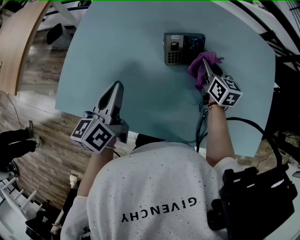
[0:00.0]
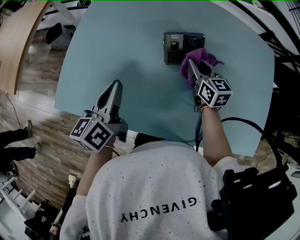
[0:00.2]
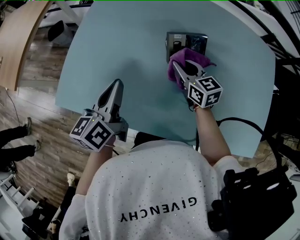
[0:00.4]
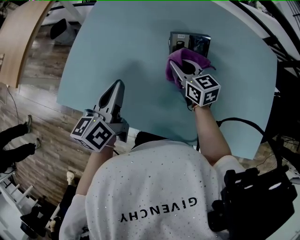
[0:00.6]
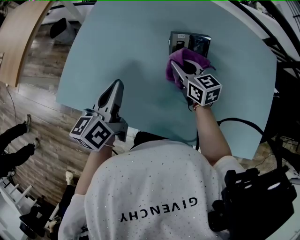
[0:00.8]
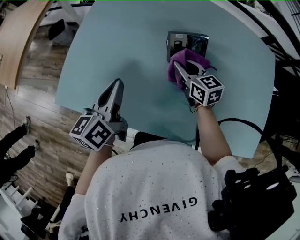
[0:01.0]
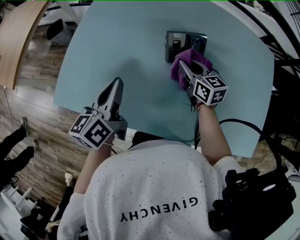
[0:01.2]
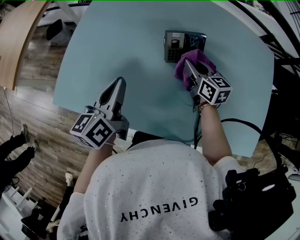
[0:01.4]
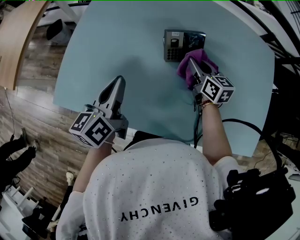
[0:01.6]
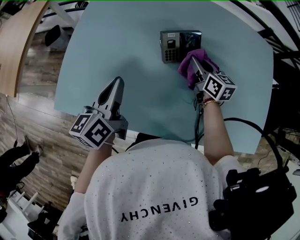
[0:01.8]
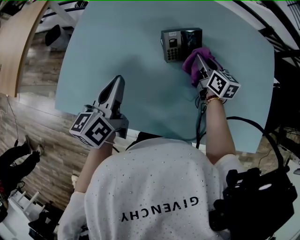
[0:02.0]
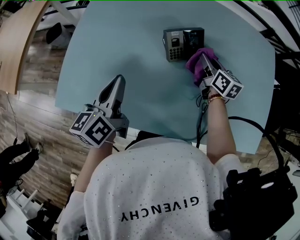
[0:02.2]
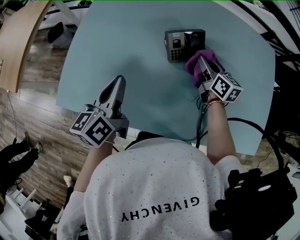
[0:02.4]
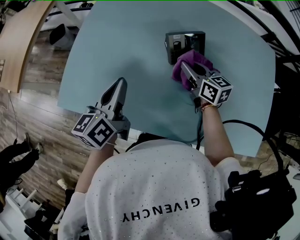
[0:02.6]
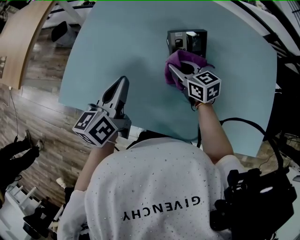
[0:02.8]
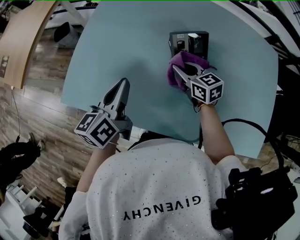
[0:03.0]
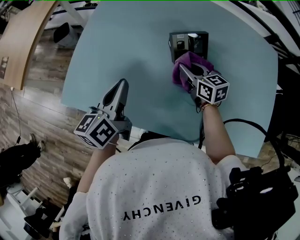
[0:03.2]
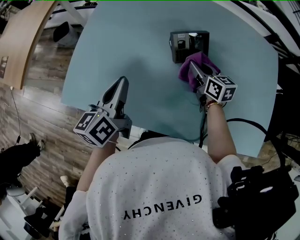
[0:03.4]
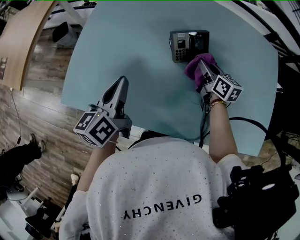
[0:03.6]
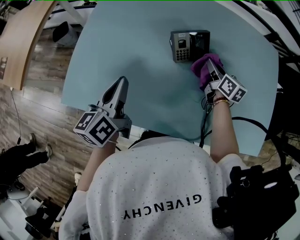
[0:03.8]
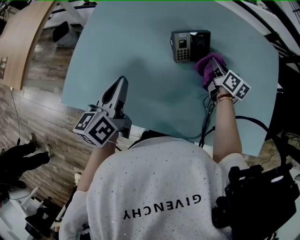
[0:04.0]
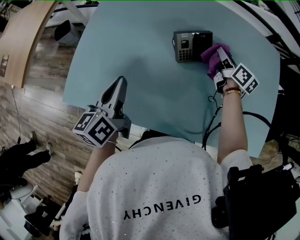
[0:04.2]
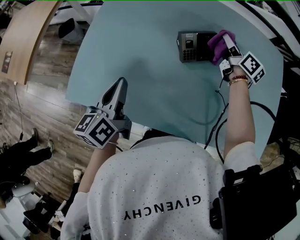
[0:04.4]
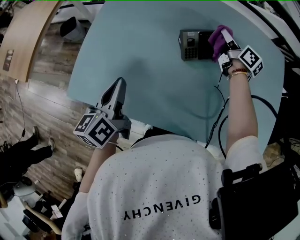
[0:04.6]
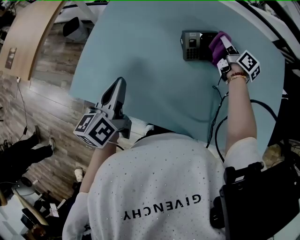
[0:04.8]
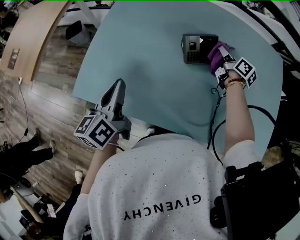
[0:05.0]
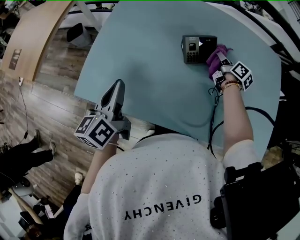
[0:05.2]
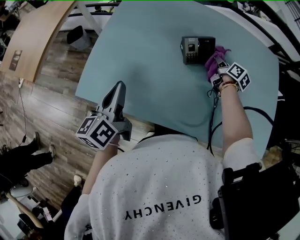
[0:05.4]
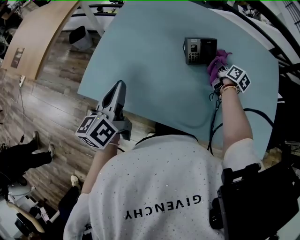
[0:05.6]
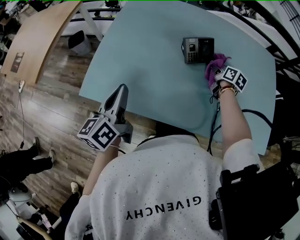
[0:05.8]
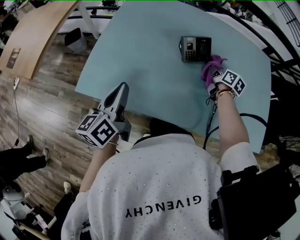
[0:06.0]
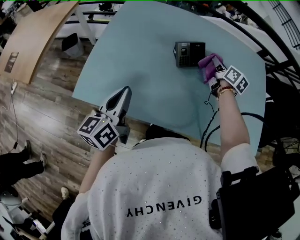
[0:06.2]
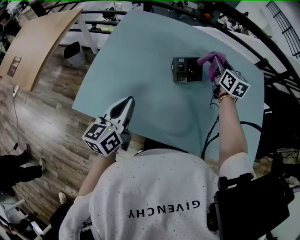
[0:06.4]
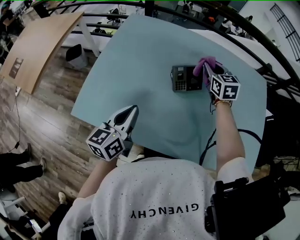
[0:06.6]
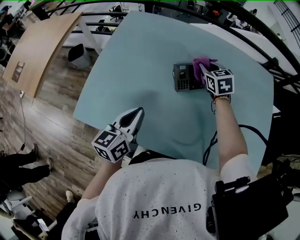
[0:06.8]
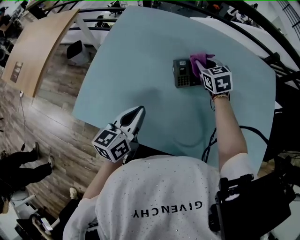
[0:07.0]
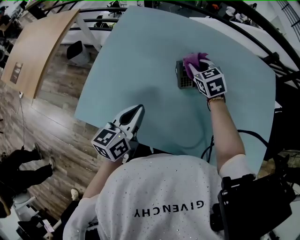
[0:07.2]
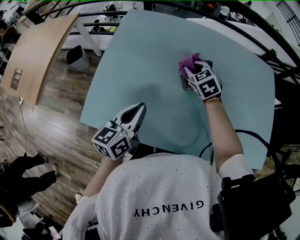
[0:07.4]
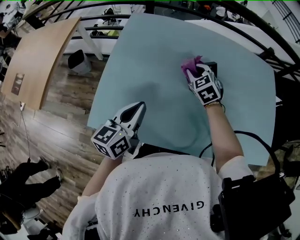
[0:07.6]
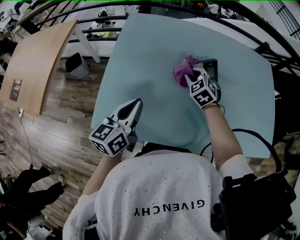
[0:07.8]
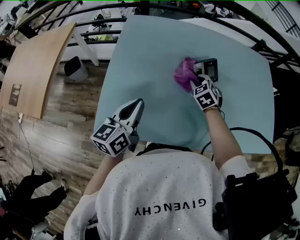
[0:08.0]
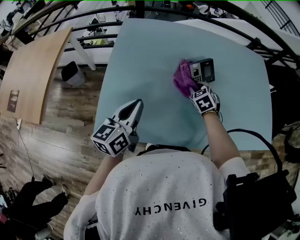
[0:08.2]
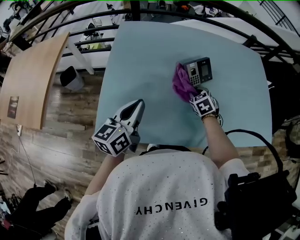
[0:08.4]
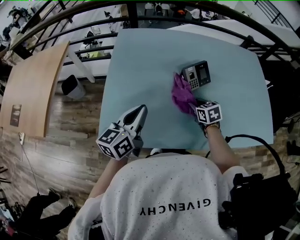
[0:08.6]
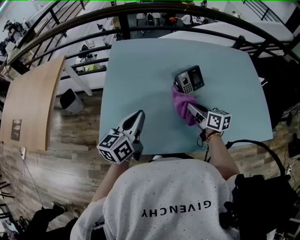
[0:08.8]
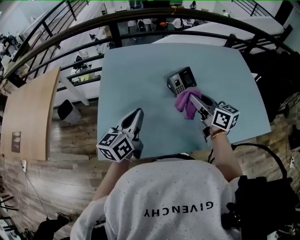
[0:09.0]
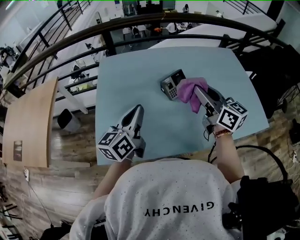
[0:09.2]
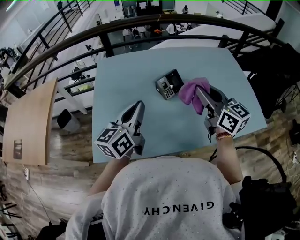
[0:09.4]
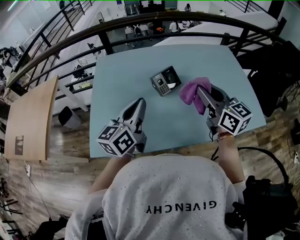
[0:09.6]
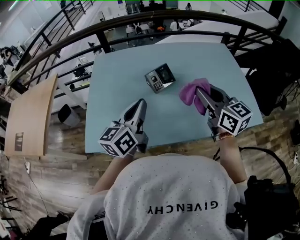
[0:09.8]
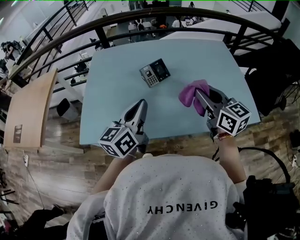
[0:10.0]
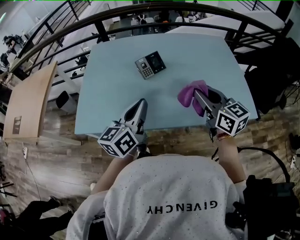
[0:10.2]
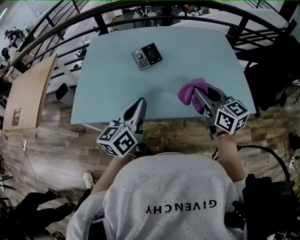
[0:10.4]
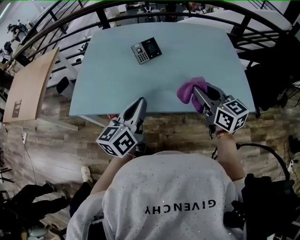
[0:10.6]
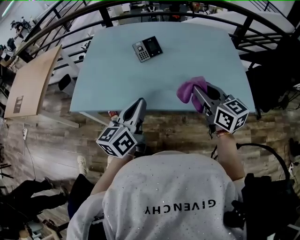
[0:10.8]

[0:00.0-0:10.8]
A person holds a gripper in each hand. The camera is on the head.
0:00.0 to 0:01.6: The right gripper travels to the left and back again, some 15 cm each way.
0:01.6 to 0:03.0: The right gripper goes roughly 10 cm to the left, and changes its angle by roughly 20 degrees.
0:03.0 to 0:04.6: The right gripper is displaced to the right, forward and upward by some 20 cm, and rotates about 50 degrees.
0:04.6 to 0:06.2: The left gripper moves backward, roughly 5 cm; the right gripper travels backward by approximately 10 cm.
0:06.2 to 0:07.8: The left gripper travels forward by some 5 cm. Meanwhile the right gripper travels to the left by about 20 cm, and rolls counterclockwise, seen from behind, by approximately 70 degrees.
0:07.8 to 0:09.2: The left gripper travels upward and to the right by about 10 cm, while the right gripper is displaced upward, backward and to the right by some 25 cm, and tilts its fingers some 40 degrees upward.
0:09.2 to 0:10.8: The grippers both shift to the right and backward by approximately 30 cm.

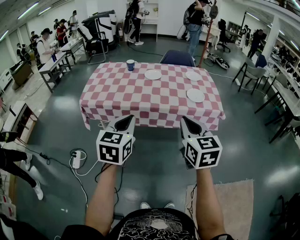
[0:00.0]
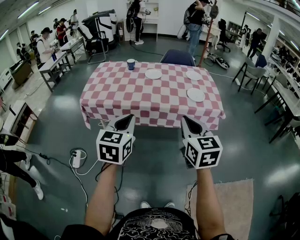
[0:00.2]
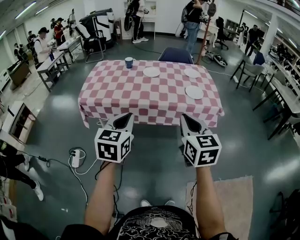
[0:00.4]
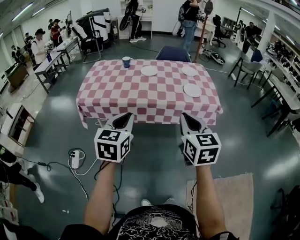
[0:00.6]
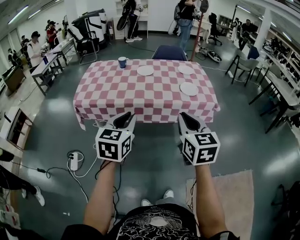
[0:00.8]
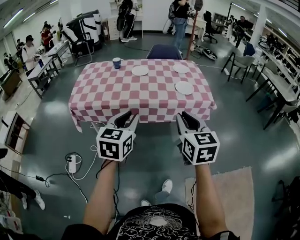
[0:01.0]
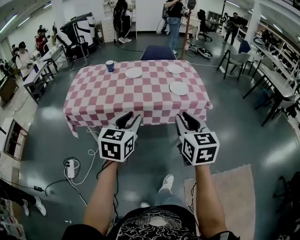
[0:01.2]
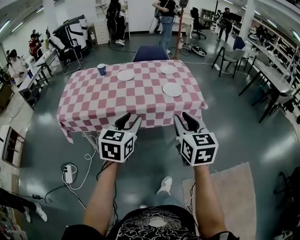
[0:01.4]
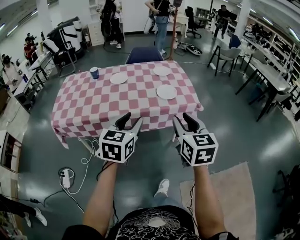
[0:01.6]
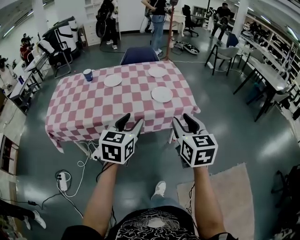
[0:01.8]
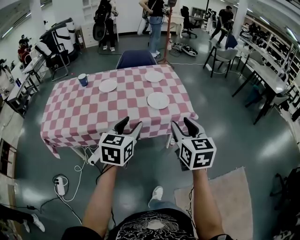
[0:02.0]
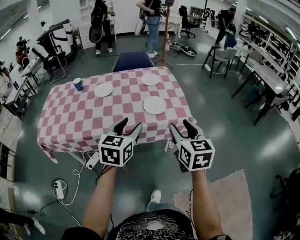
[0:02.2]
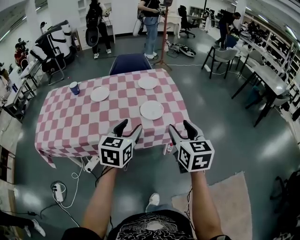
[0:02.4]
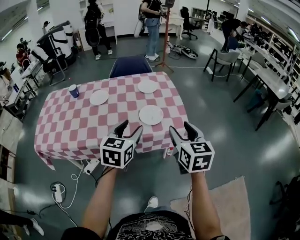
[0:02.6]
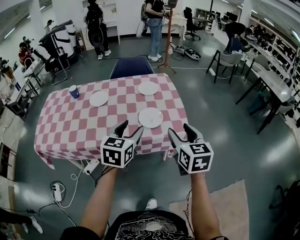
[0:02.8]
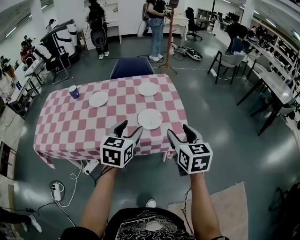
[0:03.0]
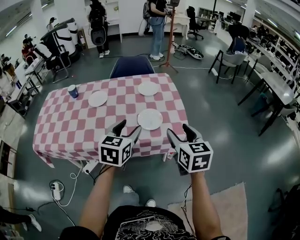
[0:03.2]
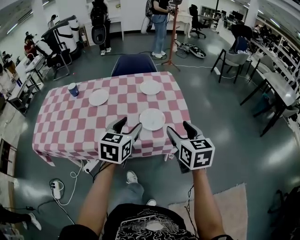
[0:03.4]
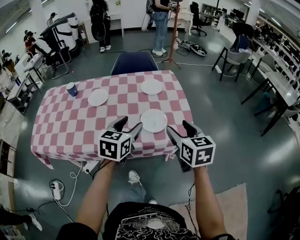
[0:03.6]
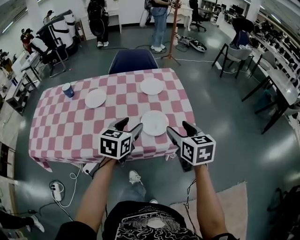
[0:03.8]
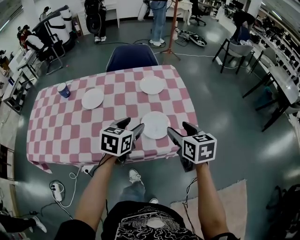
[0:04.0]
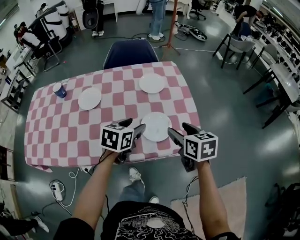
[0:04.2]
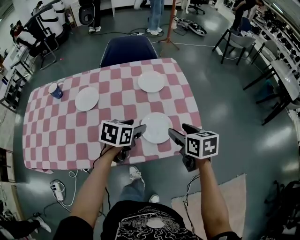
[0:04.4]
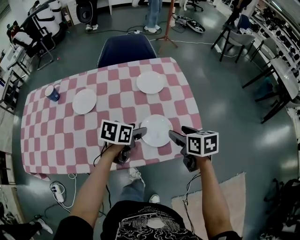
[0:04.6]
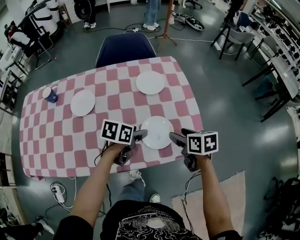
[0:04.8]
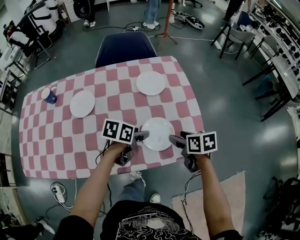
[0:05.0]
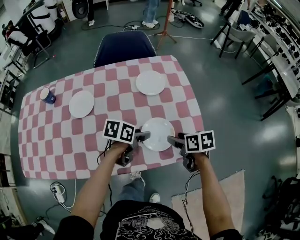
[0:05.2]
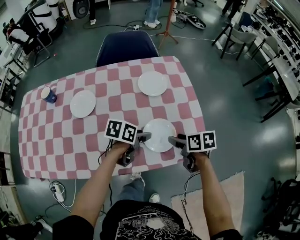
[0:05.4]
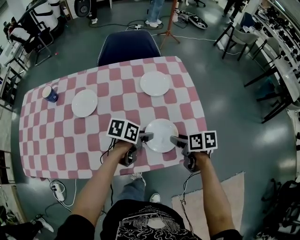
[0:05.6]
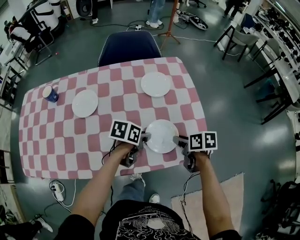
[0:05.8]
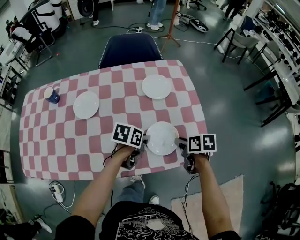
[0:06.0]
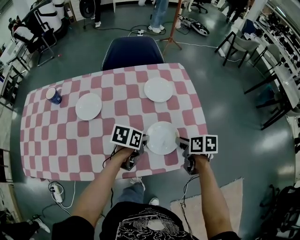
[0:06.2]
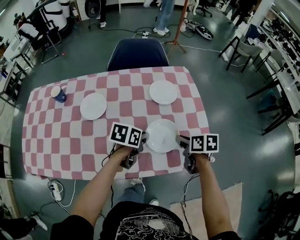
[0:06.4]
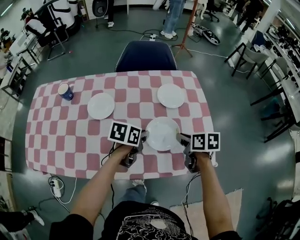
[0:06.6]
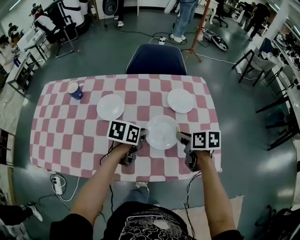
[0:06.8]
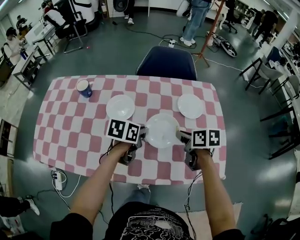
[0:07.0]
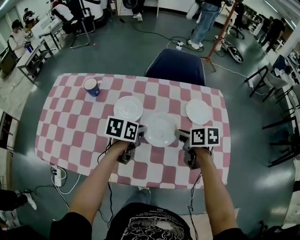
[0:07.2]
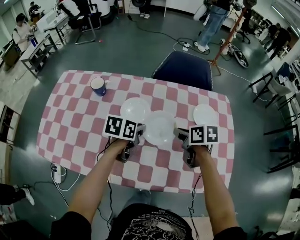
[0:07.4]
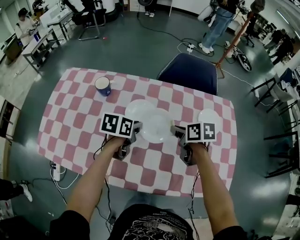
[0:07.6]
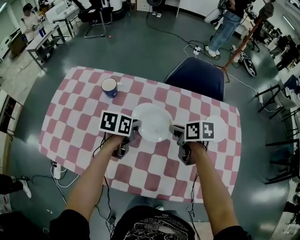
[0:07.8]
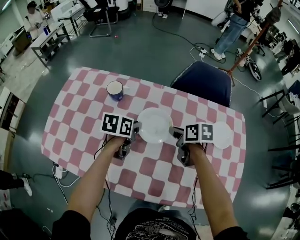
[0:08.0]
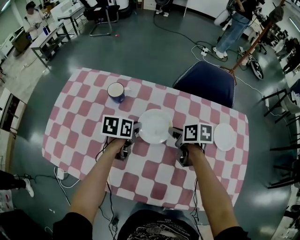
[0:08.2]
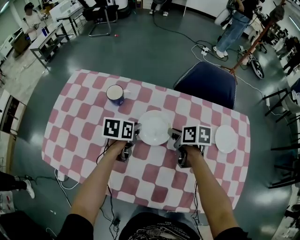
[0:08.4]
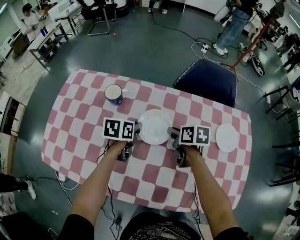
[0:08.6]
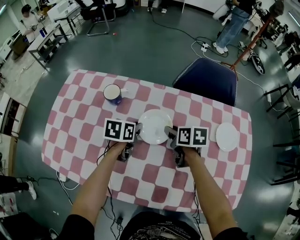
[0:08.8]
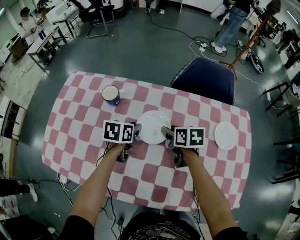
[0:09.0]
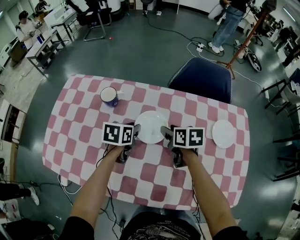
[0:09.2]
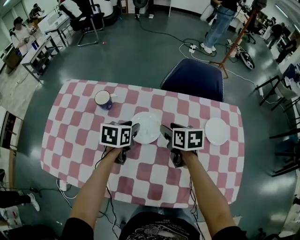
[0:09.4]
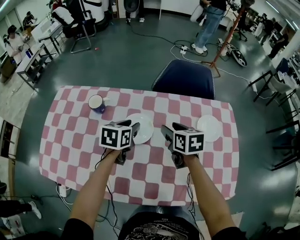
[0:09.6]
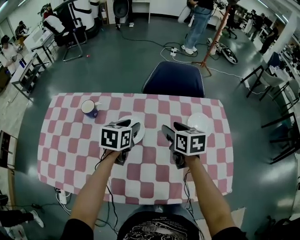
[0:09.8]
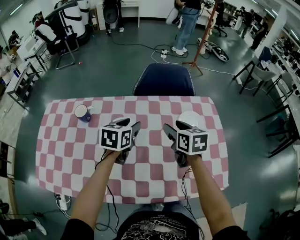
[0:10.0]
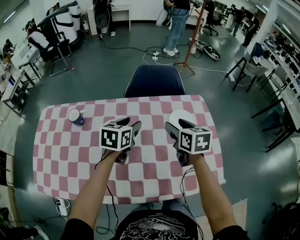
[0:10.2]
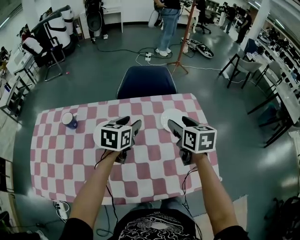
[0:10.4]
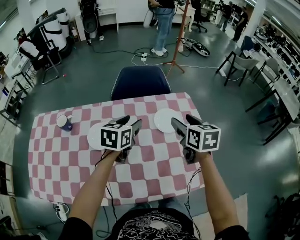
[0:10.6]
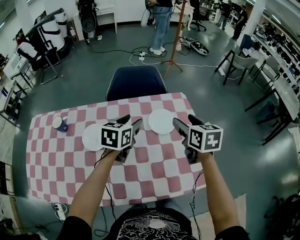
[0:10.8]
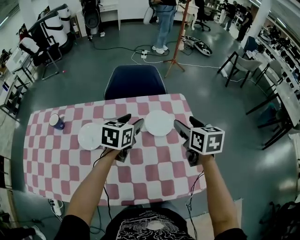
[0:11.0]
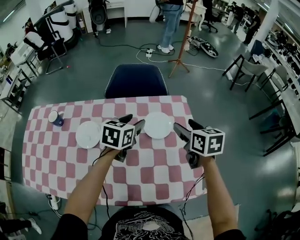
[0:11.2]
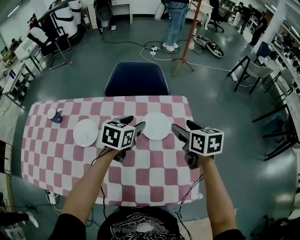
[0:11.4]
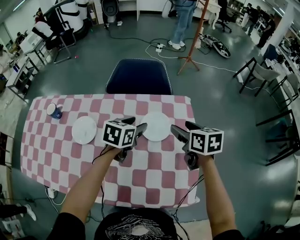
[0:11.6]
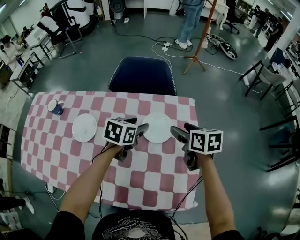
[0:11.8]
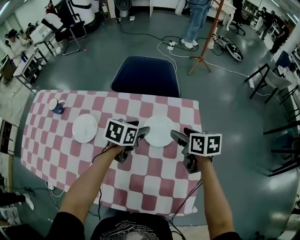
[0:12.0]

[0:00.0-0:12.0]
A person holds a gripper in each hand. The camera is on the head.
0:00.0 to 0:01.6: The two grippers go roughly 15 cm to the right and forward. The right gripper opens its fingers; the left gripper opens.
0:01.6 to 0:03.0: Both grippers move forward and to the right, some 25 cm. The right gripper opens up.
0:03.0 to 0:04.4: Both grippers travel together forward and downward, some 25 cm. The left gripper rotates about 30 degrees; the right gripper swivels about 30 degrees.
0:04.4 to 0:06.0: Both grippers move downward, some 10 cm. The left gripper turns by approximately 20 degrees, and closes its fingers; the right gripper changes its angle by some 20 degrees, and closes.
0:06.0 to 0:07.6: The right gripper shifts by some 35 cm, and turns by approximately 20 degrees. Meanwhile the left gripper shifts by approximately 30 cm, and swivels about 30 degrees.
0:07.6 to 0:09.0: Both grippers travel together forward, to the left and downward, some 10 cm. The right gripper opens up.
0:09.0 to 0:10.4: The two grippers go about 30 cm to the right and upward. The left gripper turns by some 30 degrees, and opens its fingers. Meanwhile the right gripper swivels about 30 degrees.
0:10.4 to 0:12.0: The grippers both shift to the right, downward and forward by approximately 20 cm. The right gripper rotates approximately 30 degrees.

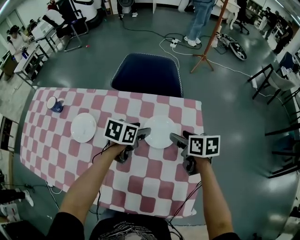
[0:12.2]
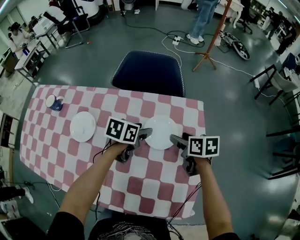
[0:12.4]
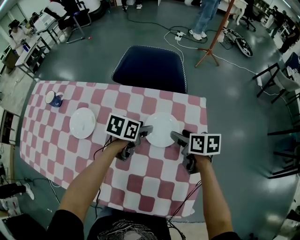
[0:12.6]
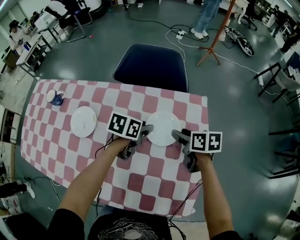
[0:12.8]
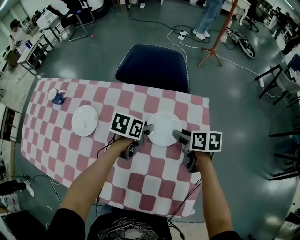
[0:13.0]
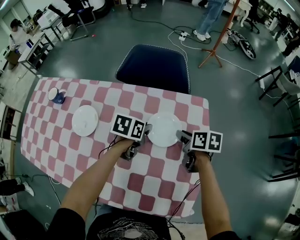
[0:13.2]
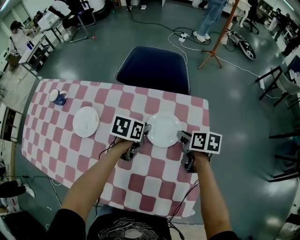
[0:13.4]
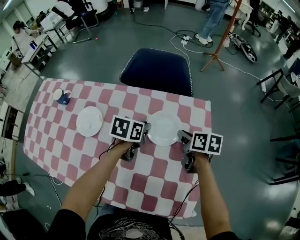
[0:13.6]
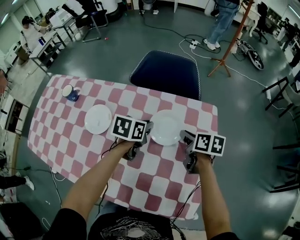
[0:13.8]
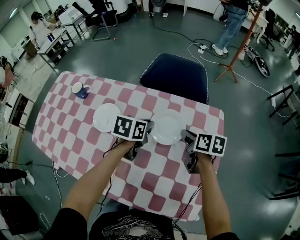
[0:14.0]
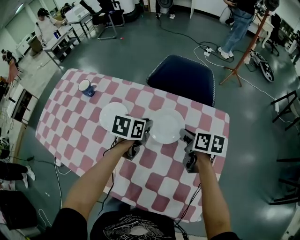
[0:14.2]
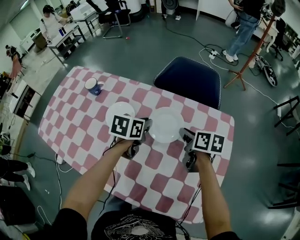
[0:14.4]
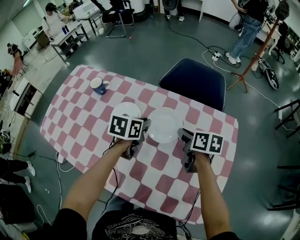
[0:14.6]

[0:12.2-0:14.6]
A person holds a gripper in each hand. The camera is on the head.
0:12.2 to 0:13.4: The left gripper closes up, while the right gripper closes up.
0:13.4 to 0:14.6: Both grippers travel together to the left, roughly 20 cm.
